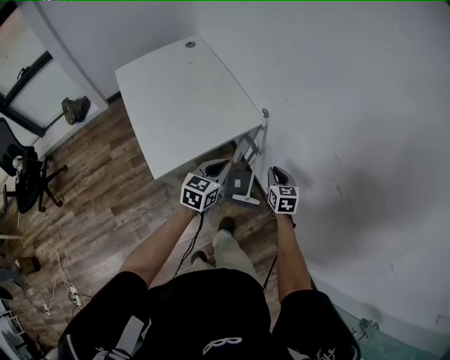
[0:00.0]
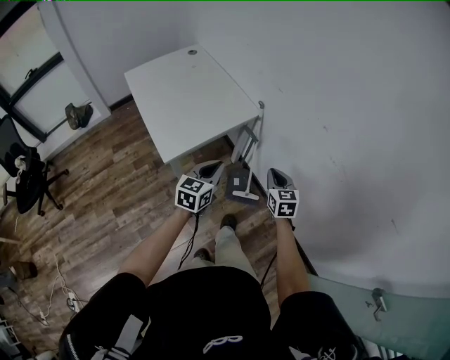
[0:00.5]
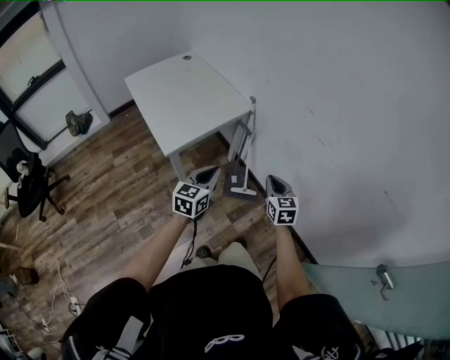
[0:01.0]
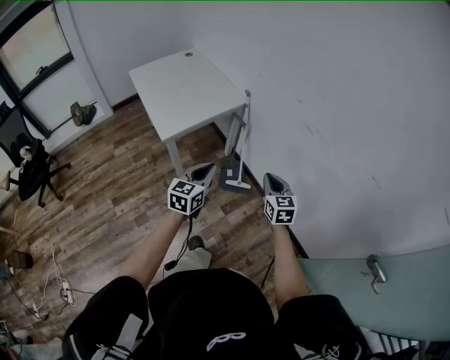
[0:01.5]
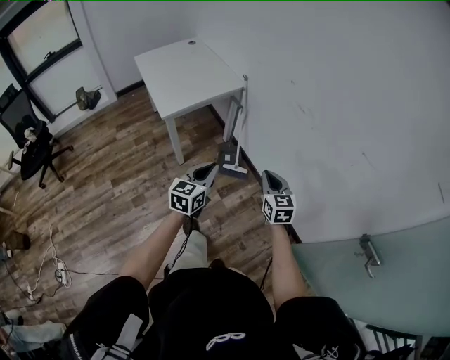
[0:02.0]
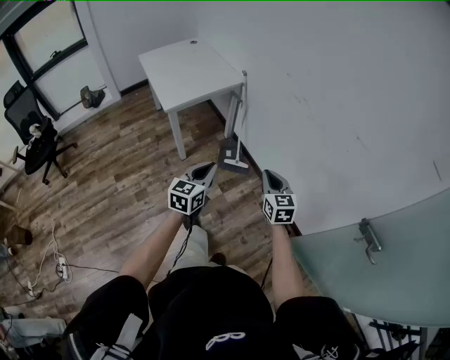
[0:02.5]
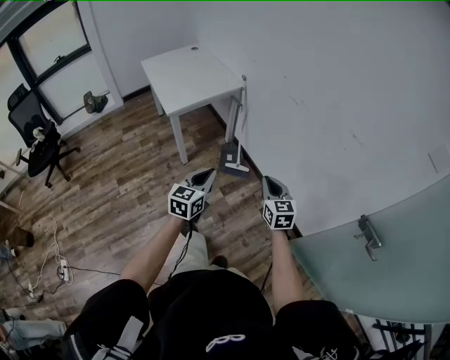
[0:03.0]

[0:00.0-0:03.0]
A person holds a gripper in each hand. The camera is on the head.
0:00.0 to 0:01.5: The grippers both shift backward by approximately 35 cm.
0:01.5 to 0:03.0: The right gripper heads backward, covering approximately 20 cm; the left gripper heads backward and to the right, covering some 25 cm.

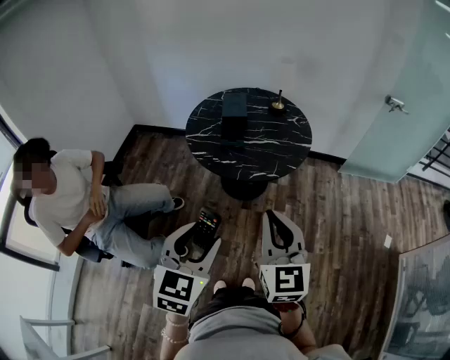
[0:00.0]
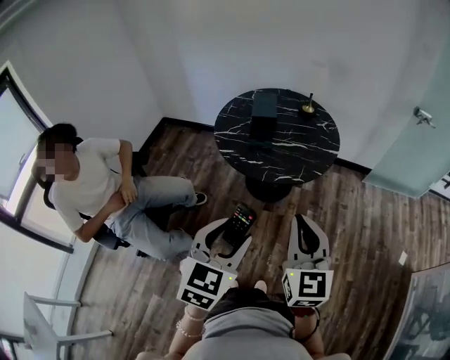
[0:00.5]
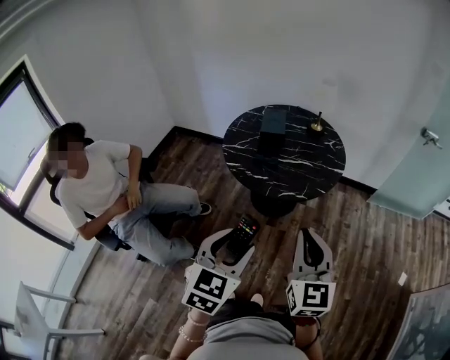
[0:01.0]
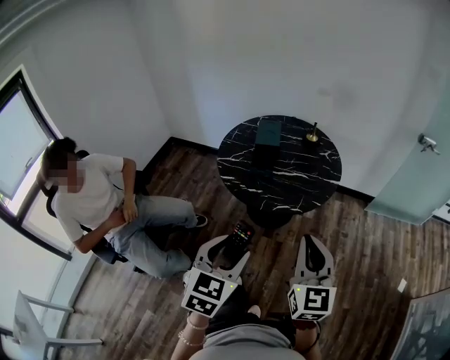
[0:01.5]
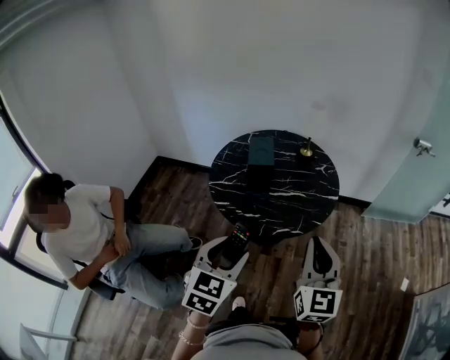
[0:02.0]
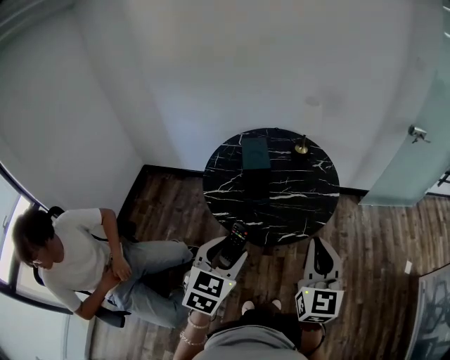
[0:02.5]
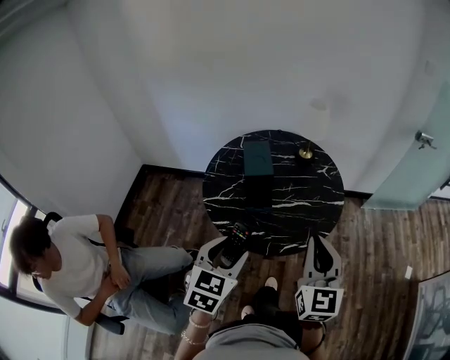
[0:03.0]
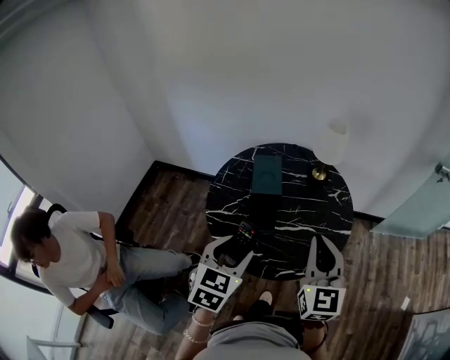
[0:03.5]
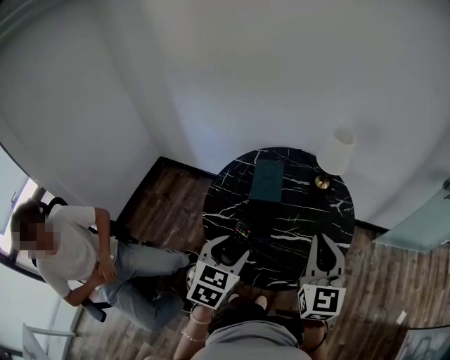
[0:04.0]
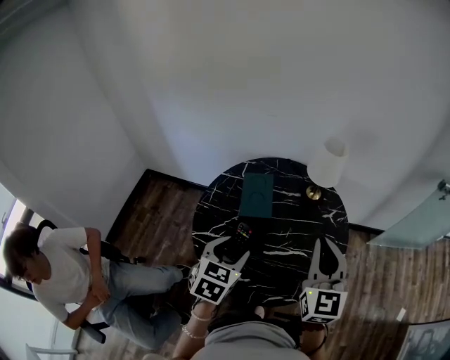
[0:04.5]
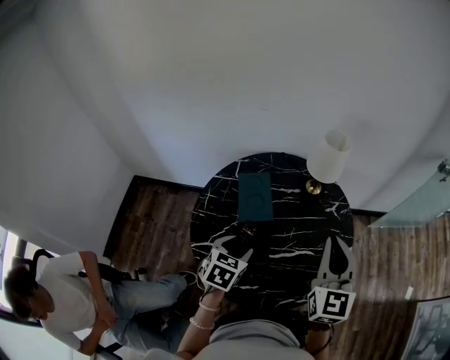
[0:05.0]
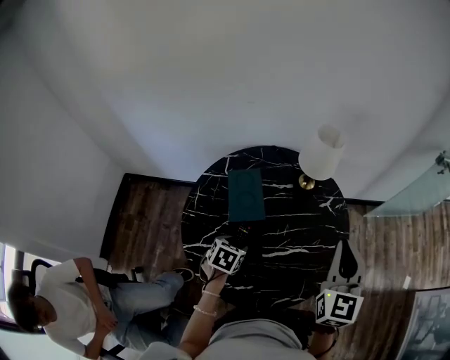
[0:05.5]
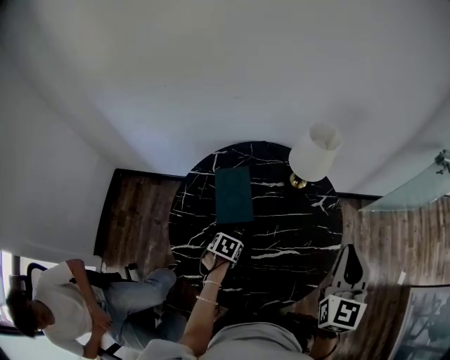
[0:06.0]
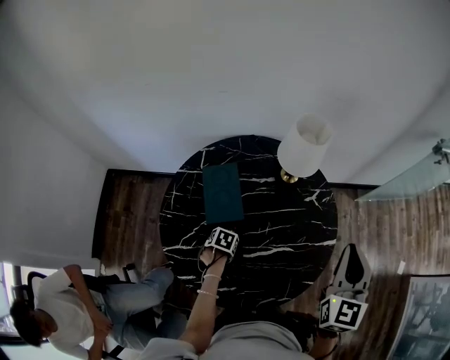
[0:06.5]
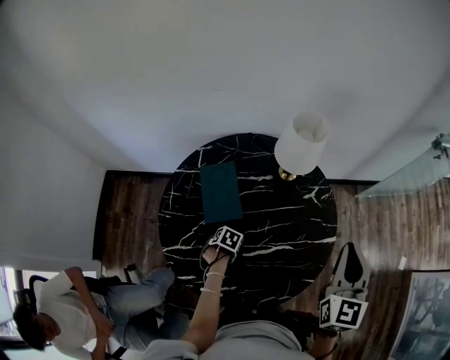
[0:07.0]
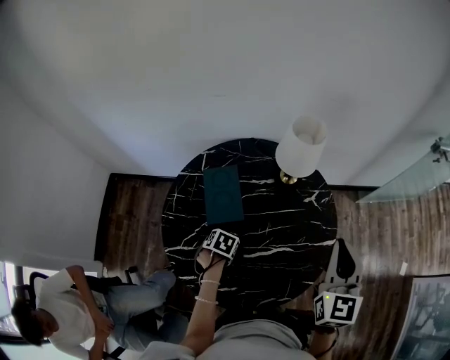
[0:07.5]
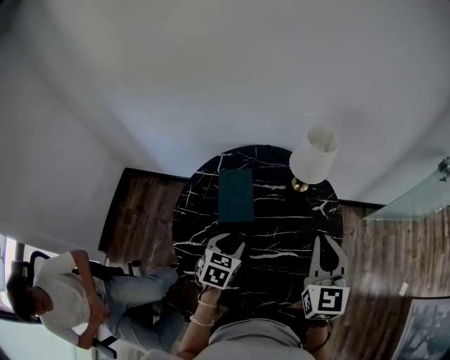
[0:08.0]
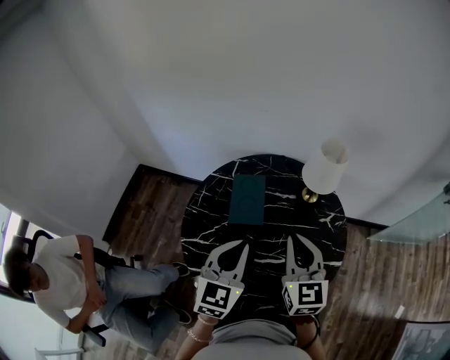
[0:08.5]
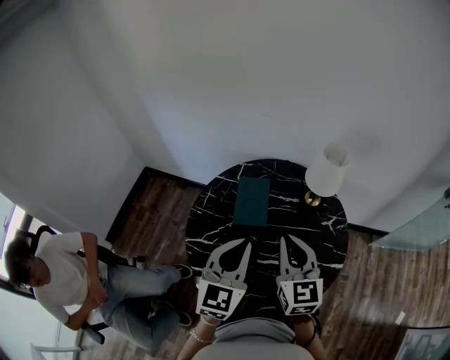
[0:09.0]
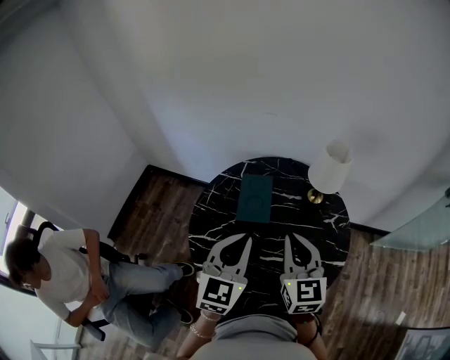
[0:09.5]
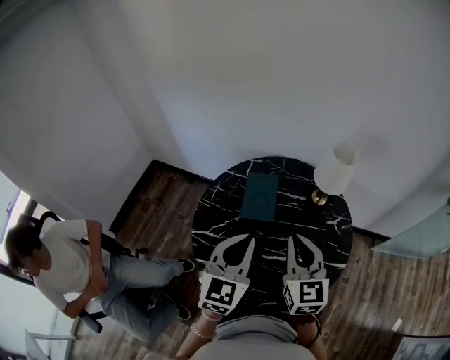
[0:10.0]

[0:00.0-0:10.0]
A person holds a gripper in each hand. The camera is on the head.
0:00.0 to 0:02.0: Both grippers travel together forward, about 15 cm.
0:02.0 to 0:04.0: The two grippers go roughly 30 cm forward.
0:04.0 to 0:06.0: The left gripper goes roughly 30 cm downward, and points its fingers about 40 degrees further downward. The right gripper changes place by roughly 15 cm, and swivels roughly 30 degrees.
0:06.0 to 0:08.0: The right gripper shifts by roughly 5 cm; the left gripper goes some 15 cm upward, and turns by roughly 30 degrees.
0:08.0 to 0:10.0: The right gripper travels to the left by approximately 10 cm, while the left gripper shifts roughly 20 cm upward and backward, tilts its fingers about 30 degrees upward, and closes up.

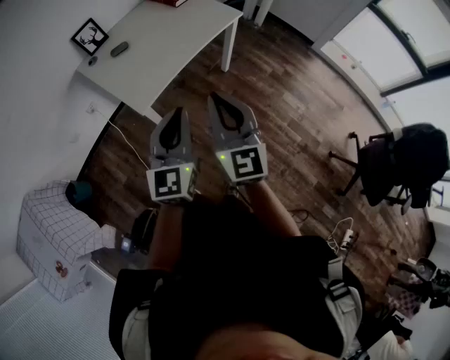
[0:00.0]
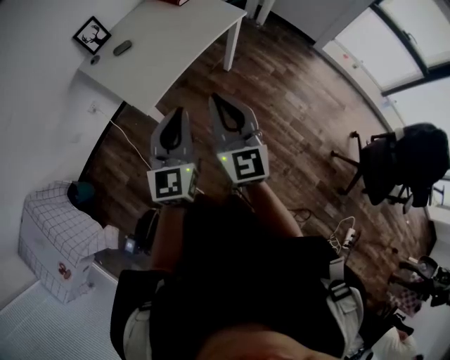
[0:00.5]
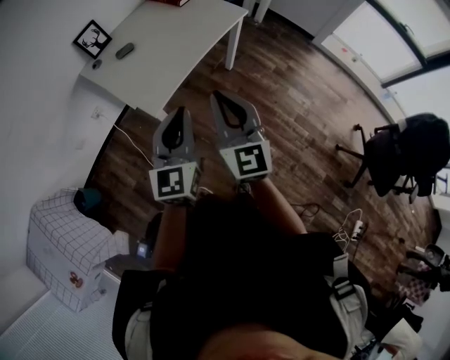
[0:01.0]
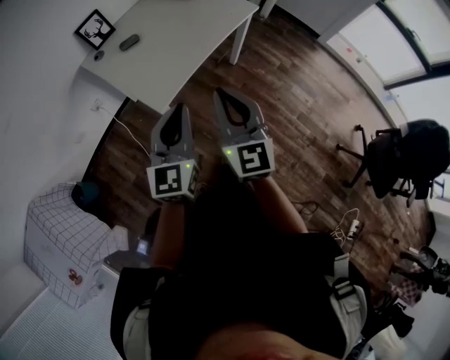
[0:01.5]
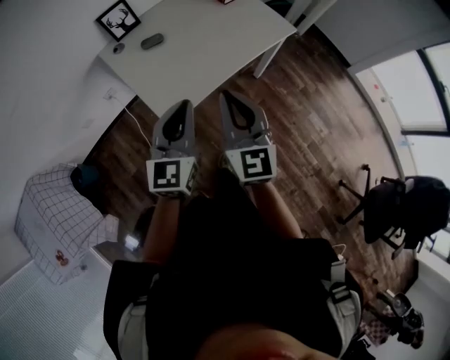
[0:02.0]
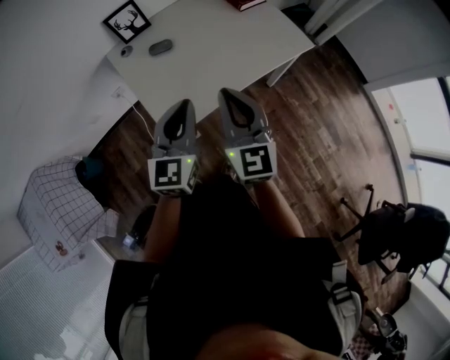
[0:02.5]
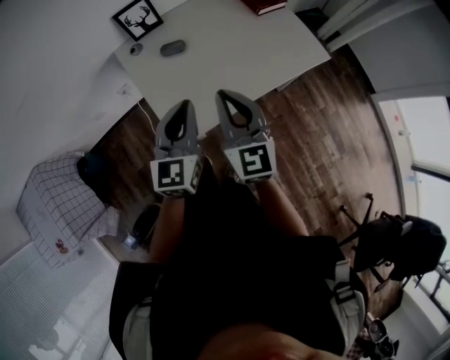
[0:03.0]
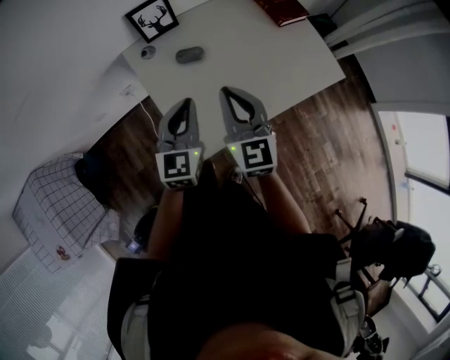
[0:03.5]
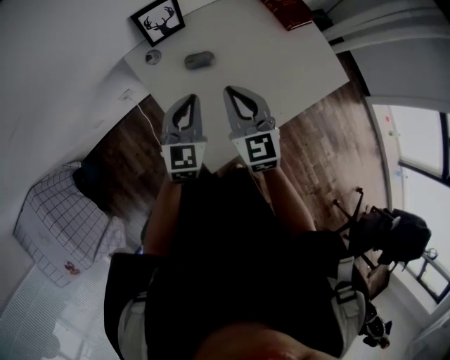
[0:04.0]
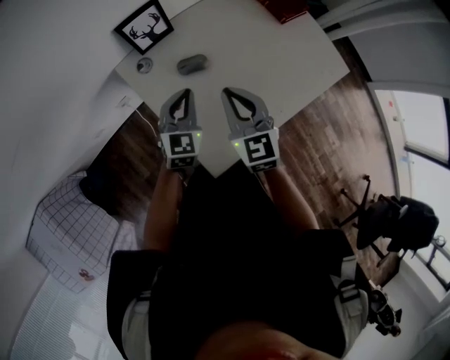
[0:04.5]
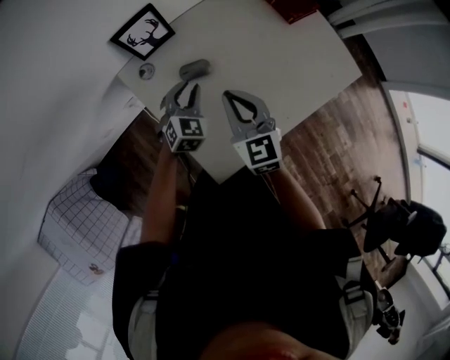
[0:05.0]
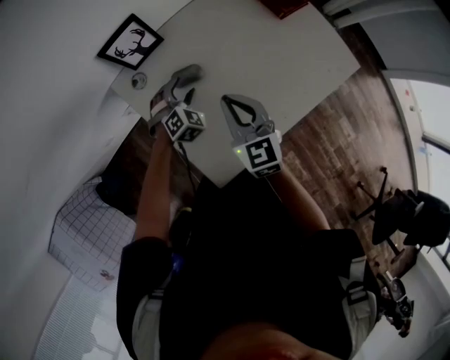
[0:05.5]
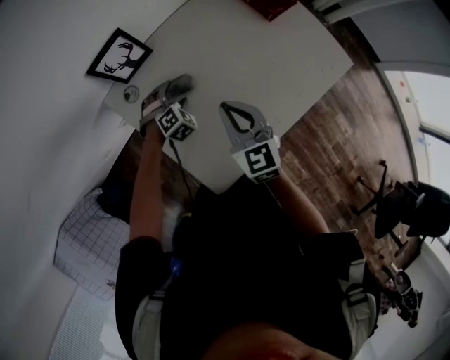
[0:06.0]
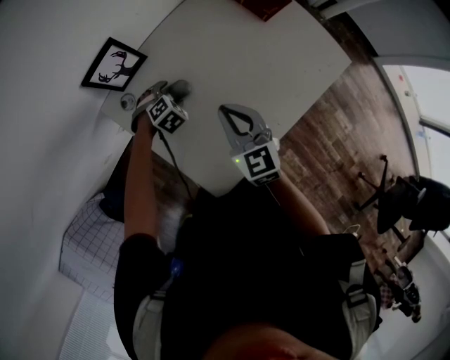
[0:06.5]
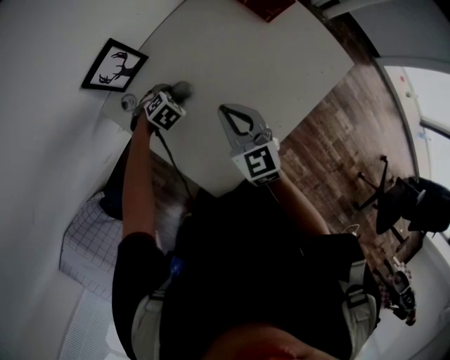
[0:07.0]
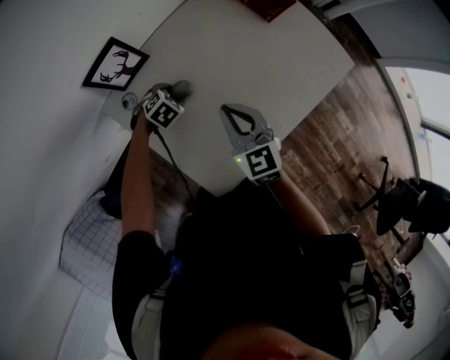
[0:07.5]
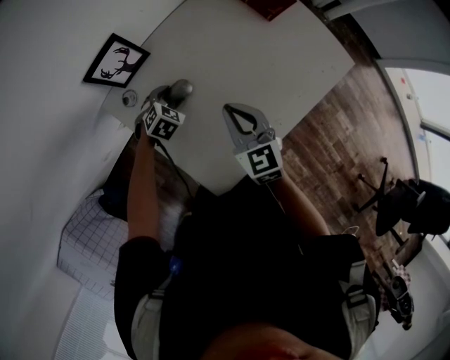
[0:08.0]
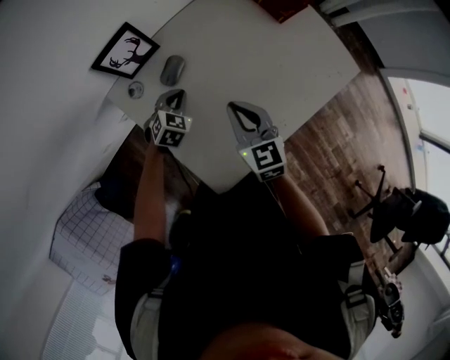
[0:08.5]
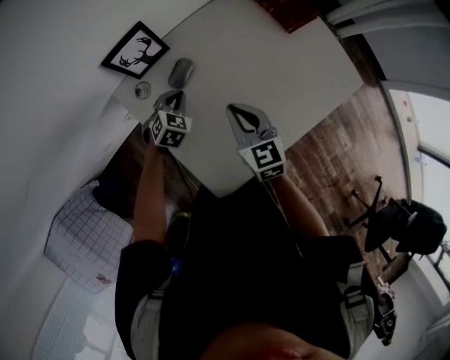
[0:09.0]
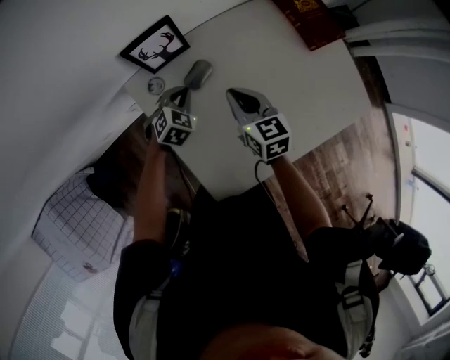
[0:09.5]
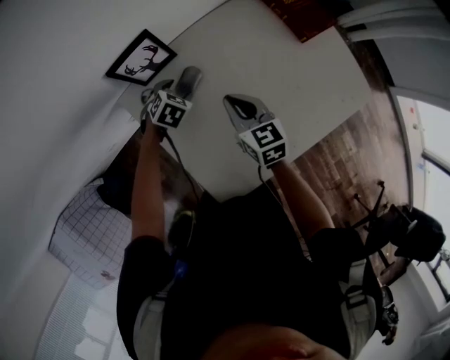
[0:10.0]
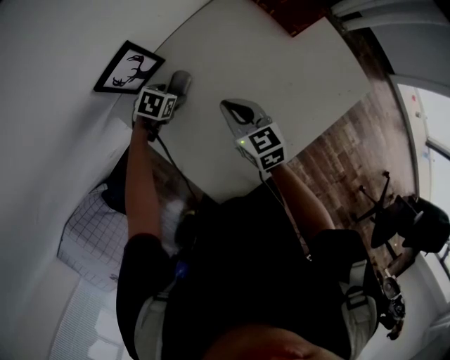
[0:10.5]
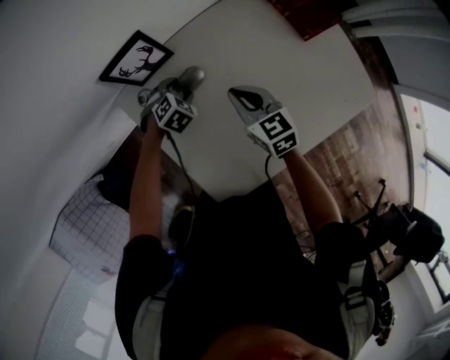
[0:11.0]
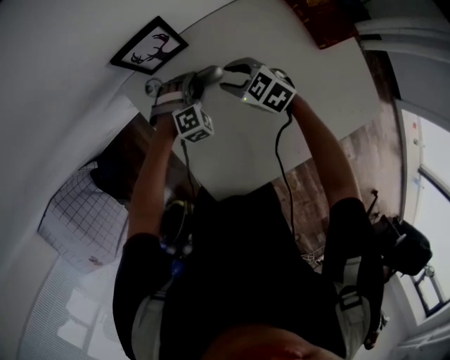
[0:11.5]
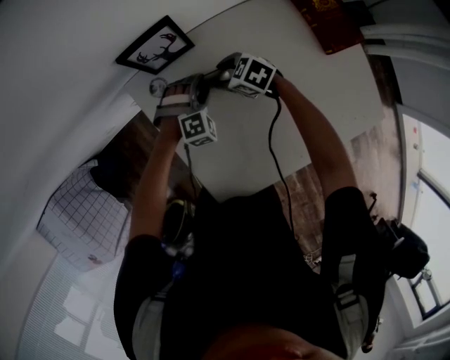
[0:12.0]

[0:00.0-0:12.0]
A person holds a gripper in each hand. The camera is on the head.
0:00.0 to 0:02.0: Both grippers move forward and to the left, roughly 20 cm.
0:02.0 to 0:04.0: The left gripper goes approximately 35 cm forward, to the left and downward. The right gripper shifts roughly 35 cm forward and to the left, and turns by some 20 degrees.
0:04.0 to 0:06.0: The right gripper moves to the right, downward and forward, about 10 cm. The left gripper travels downward and forward by about 25 cm, angles its fingers downward, by about 40 degrees, and opens.
0:06.0 to 0:08.0: The left gripper changes its angle by approximately 20 degrees.
0:08.0 to 0:10.0: The grippers both shift forward by some 5 cm. The left gripper closes, then reopens.
0:10.0 to 0:12.0: The right gripper is displaced downward by roughly 10 cm, turns by roughly 50 degrees, and opens its fingers. Meanwhile the left gripper changes its angle by approximately 40 degrees.

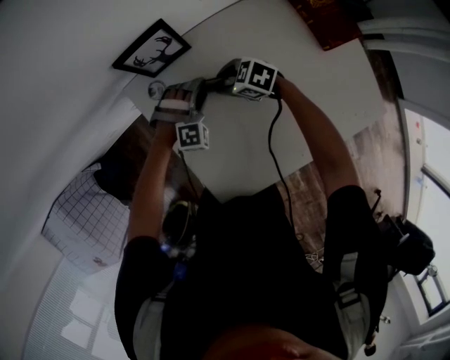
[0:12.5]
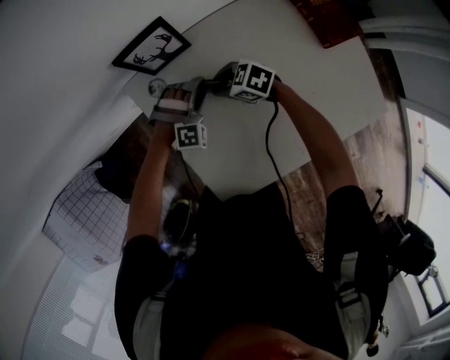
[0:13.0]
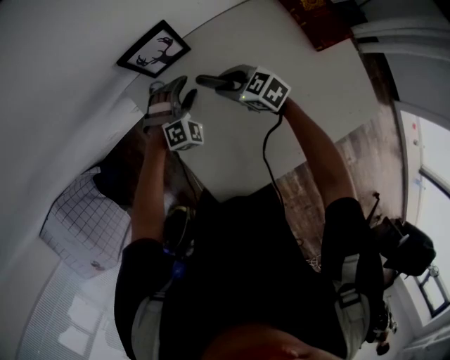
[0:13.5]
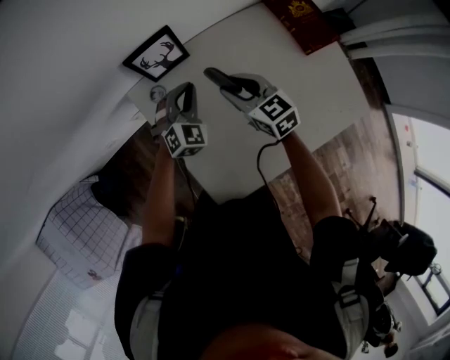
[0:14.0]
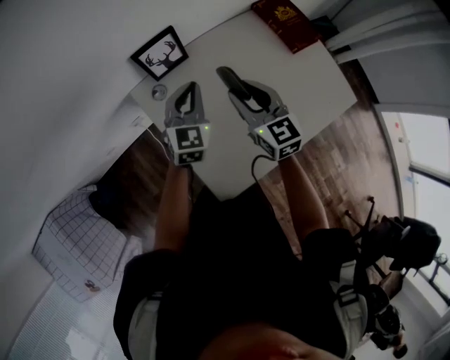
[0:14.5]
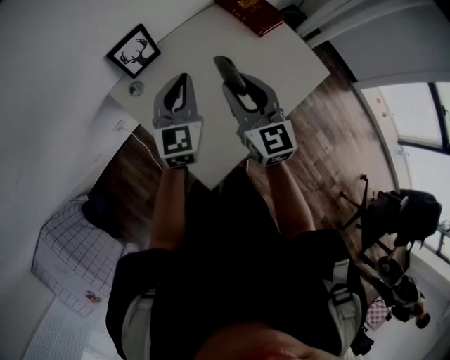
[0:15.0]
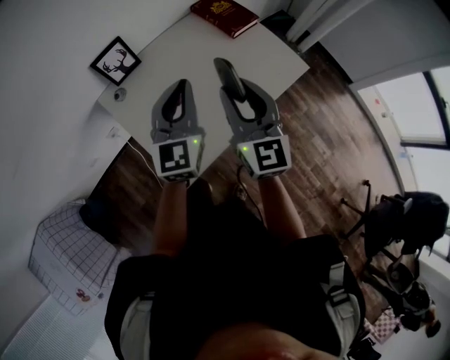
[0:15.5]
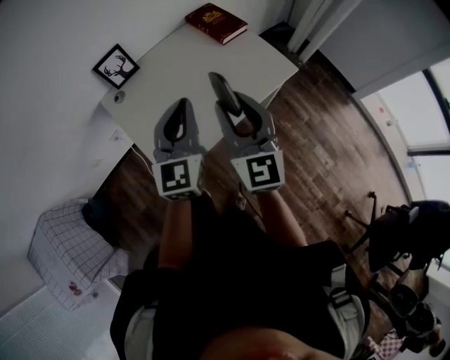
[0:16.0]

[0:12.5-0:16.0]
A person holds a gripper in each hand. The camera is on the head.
0:12.5 to 0:14.5: Both grippers travel together upward, roughly 25 cm. The right gripper turns by approximately 60 degrees, while the left gripper rotates around the line of its fingers by about 70 degrees, counterclockwise from behind, and closes up.
0:14.5 to 0:16.0: Both grippers travel together backward, to the right and upward, roughly 40 cm. The right gripper changes its angle by about 30 degrees, while the left gripper rotates approximately 20 degrees.
